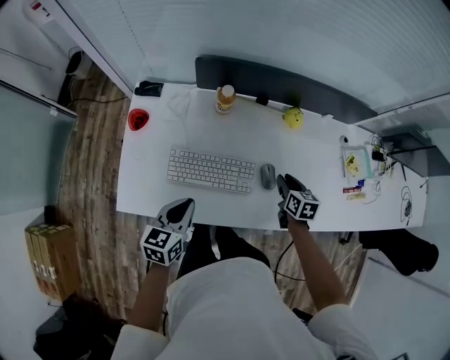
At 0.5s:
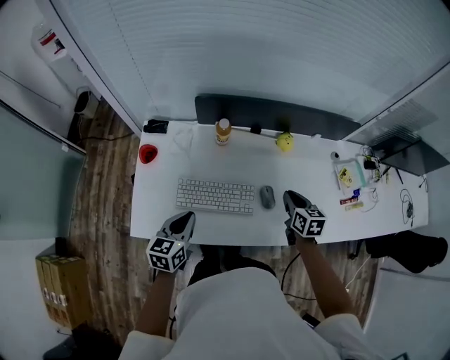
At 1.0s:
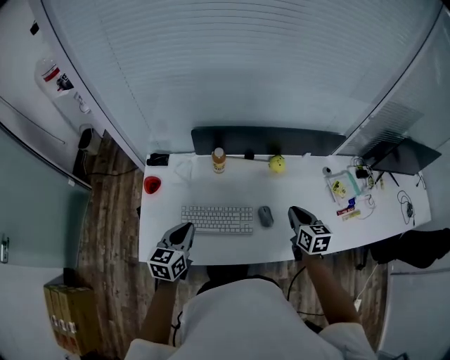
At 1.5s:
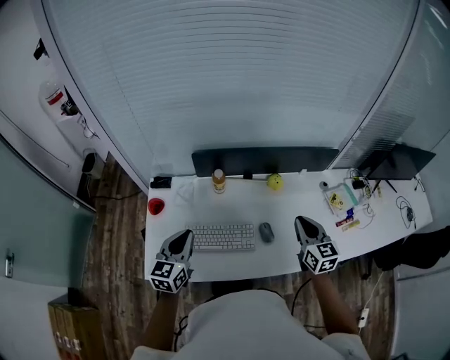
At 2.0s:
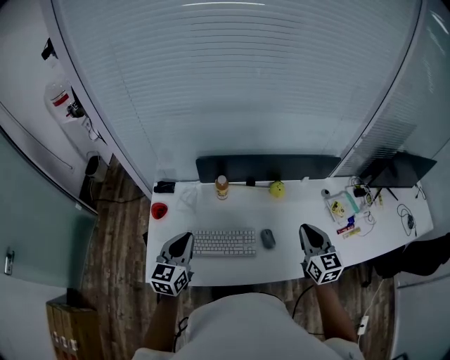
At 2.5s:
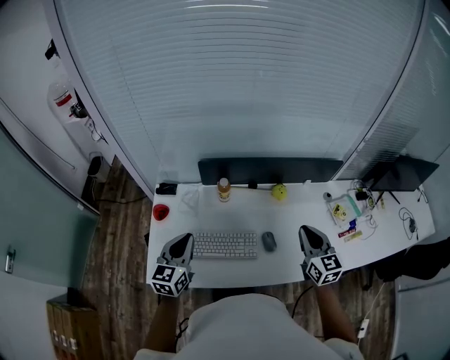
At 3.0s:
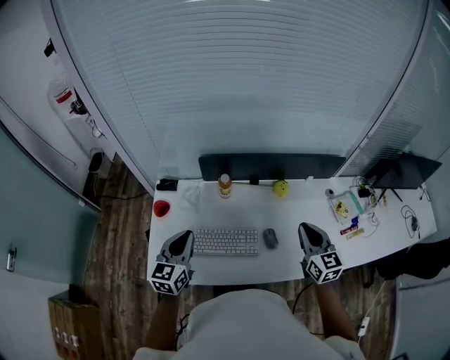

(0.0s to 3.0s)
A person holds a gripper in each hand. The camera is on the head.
0.0s - 1.5s: The left gripper heads upward, covering some 15 cm, and rotates roughly 20 degrees. The right gripper is displaced upward by some 25 cm, swivels about 30 degrees, and closes.
1.5s - 3.0s: The grippers move only a little.

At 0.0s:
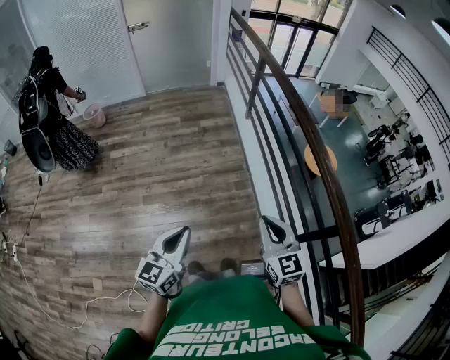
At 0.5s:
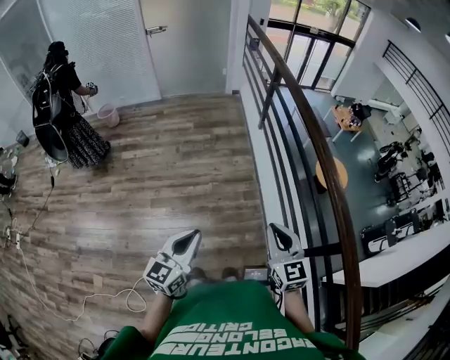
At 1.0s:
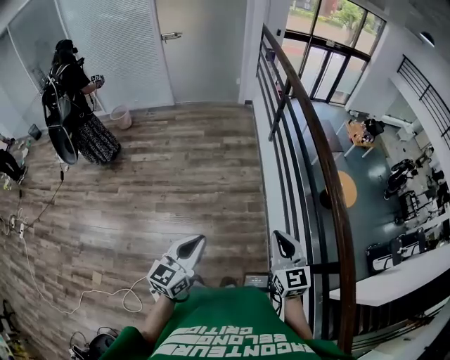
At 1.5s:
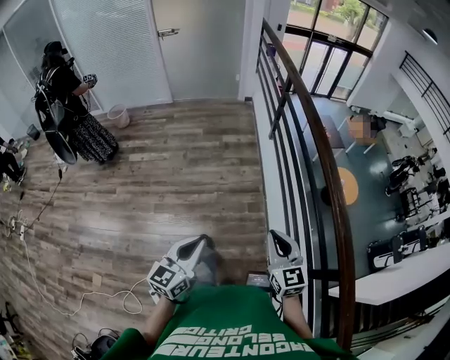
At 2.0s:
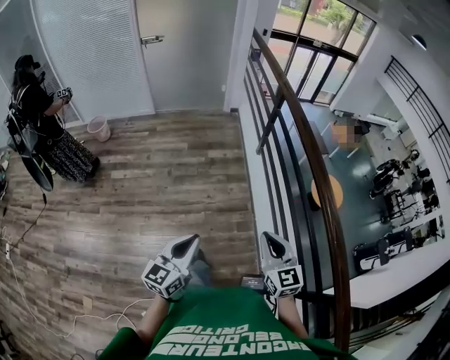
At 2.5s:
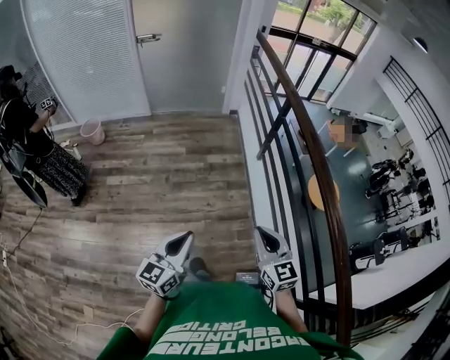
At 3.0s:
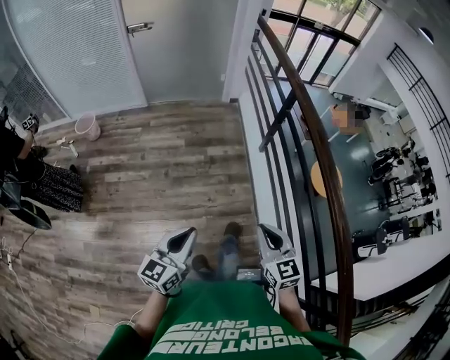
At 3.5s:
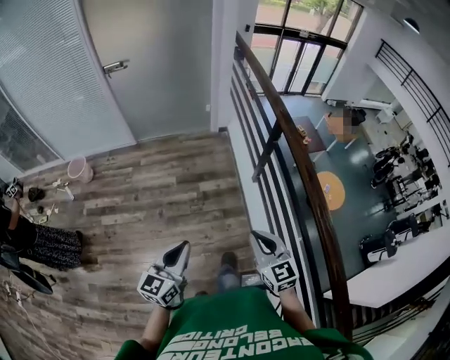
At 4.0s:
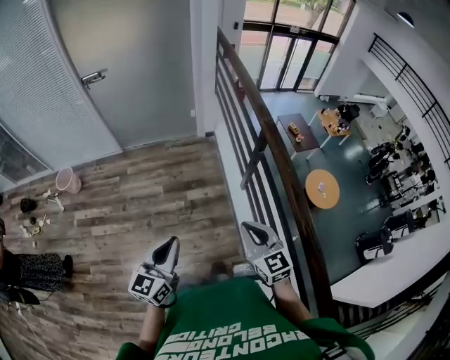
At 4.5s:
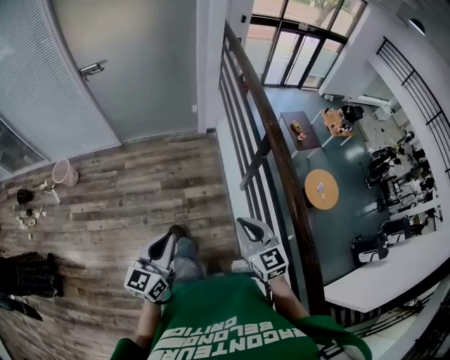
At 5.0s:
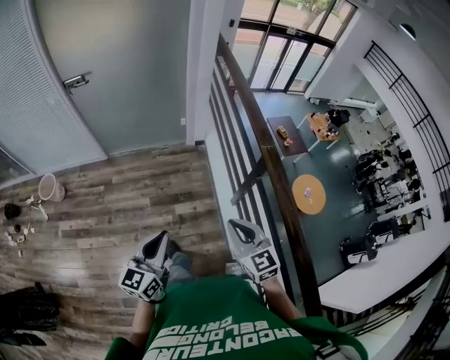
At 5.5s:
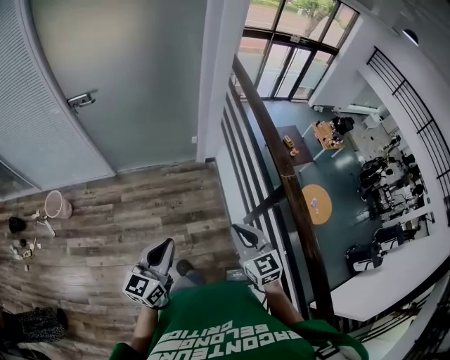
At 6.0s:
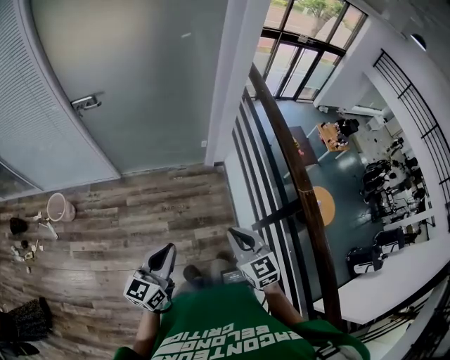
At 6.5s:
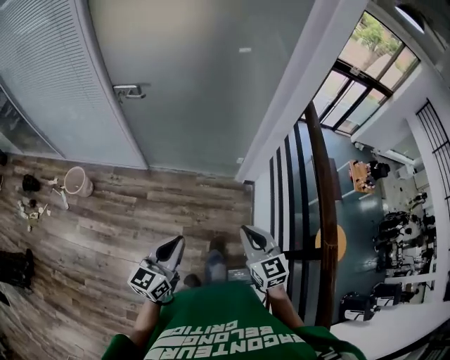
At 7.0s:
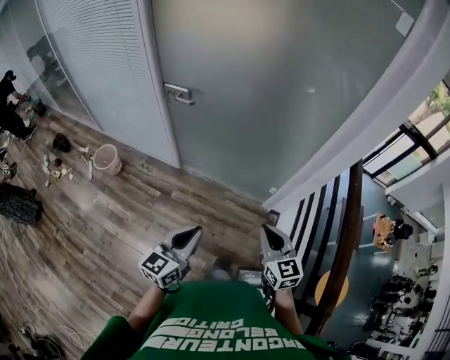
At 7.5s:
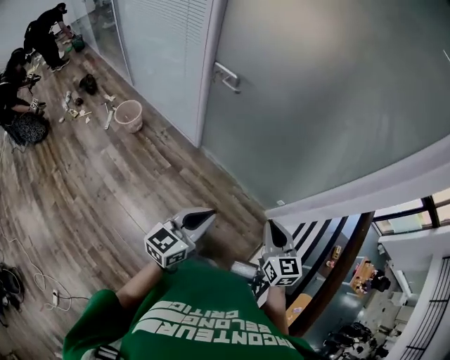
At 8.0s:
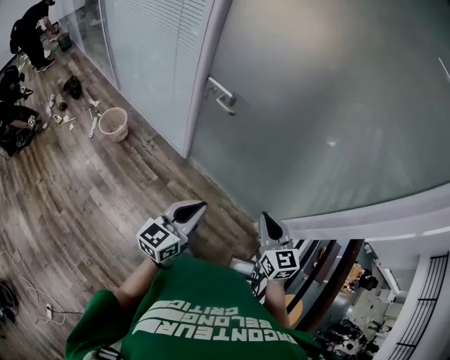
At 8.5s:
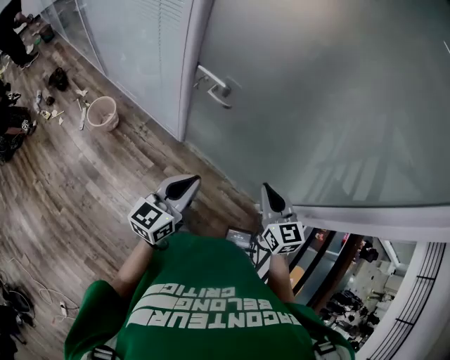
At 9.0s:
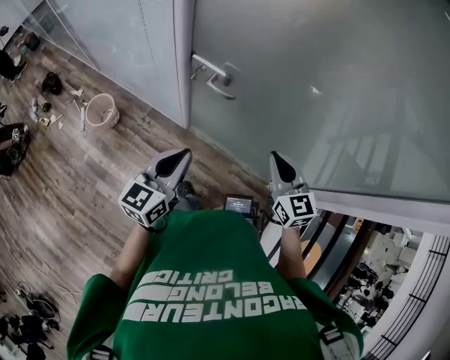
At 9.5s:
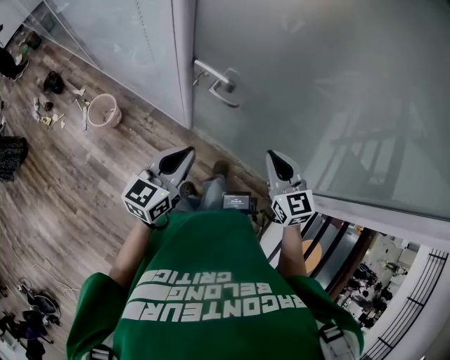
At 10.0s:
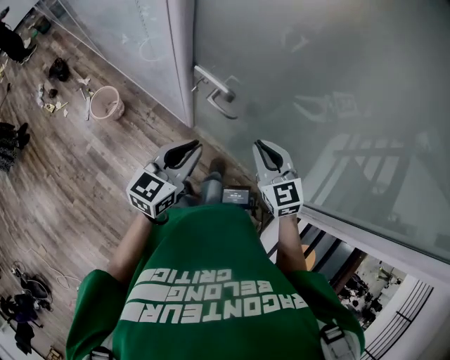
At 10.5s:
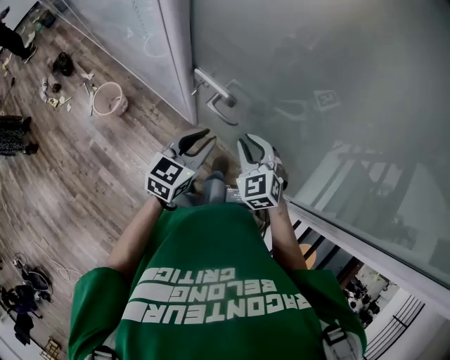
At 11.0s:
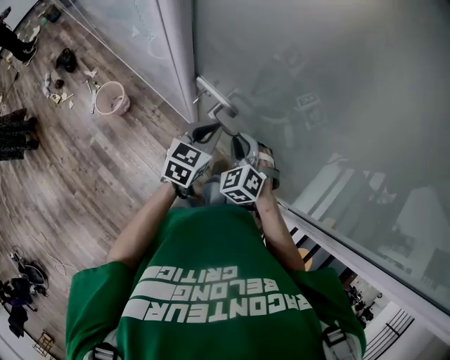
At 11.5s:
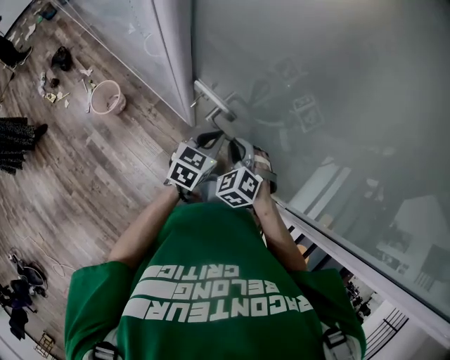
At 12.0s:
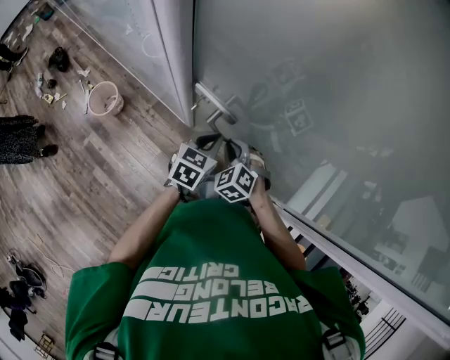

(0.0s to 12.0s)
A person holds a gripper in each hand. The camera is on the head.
0.0s - 2.0s: Both grippers travel together forward, some 25 cm.
2.0s - 4.0s: The pair of grippers is taken forward, roughly 50 cm.
4.0s - 6.0s: The right gripper is displaced forward and to the left by approximately 35 cm; the left gripper heads forward, covering roughly 35 cm.
6.0s - 8.0s: The left gripper ends up some 40 cm from where it was, and rotates roughly 30 degrees; the right gripper moves roughly 50 cm, and changes its angle by approximately 30 degrees.
8.0s - 10.0s: The two grippers go some 25 cm forward.
10.0s - 12.0s: The left gripper moves forward and downward, about 15 cm, and changes its angle by approximately 20 degrees. Meanwhile the right gripper travels downward, to the left and forward by roughly 15 cm, and changes its angle by approximately 40 degrees.

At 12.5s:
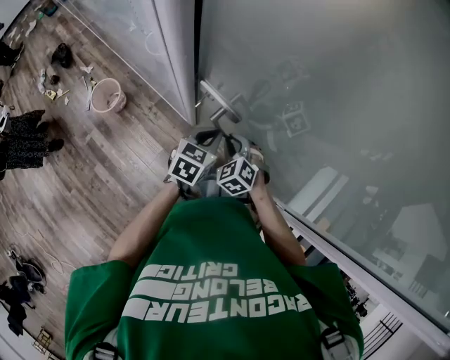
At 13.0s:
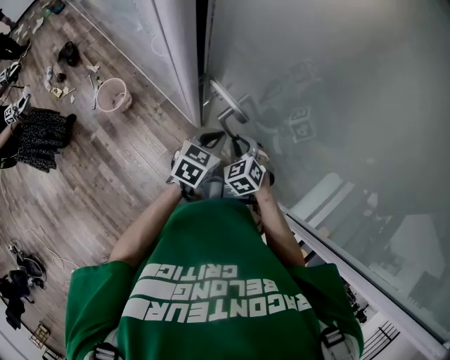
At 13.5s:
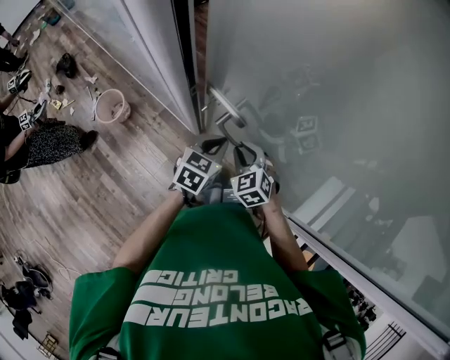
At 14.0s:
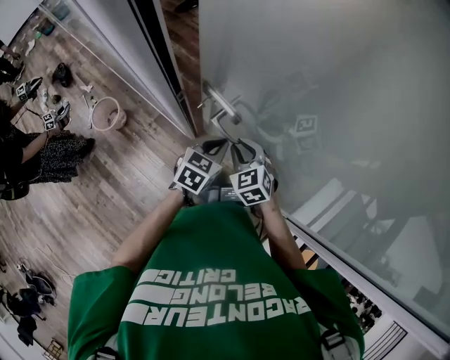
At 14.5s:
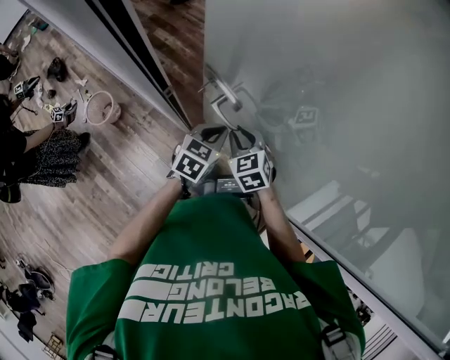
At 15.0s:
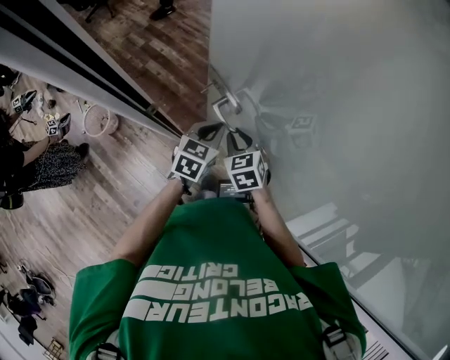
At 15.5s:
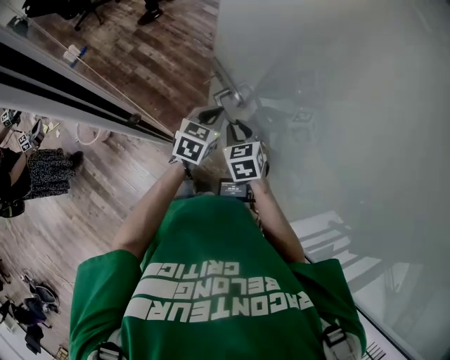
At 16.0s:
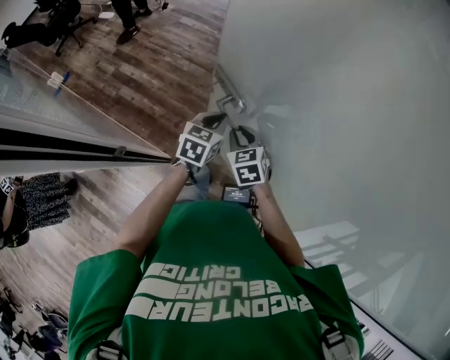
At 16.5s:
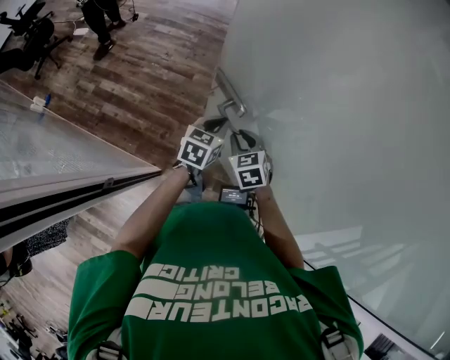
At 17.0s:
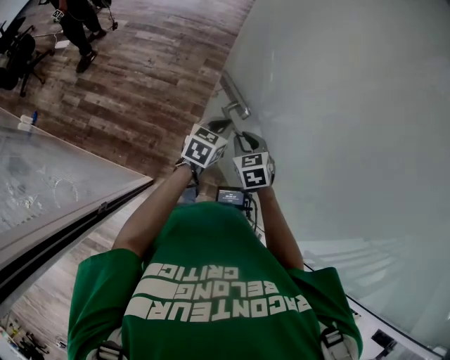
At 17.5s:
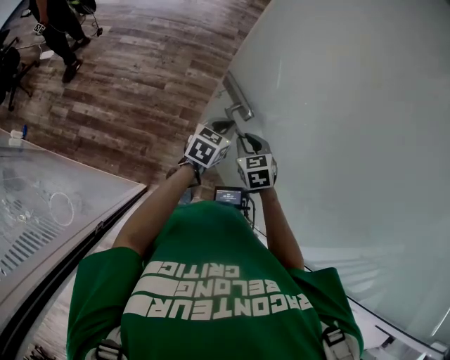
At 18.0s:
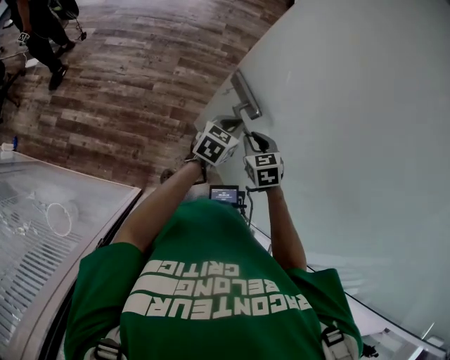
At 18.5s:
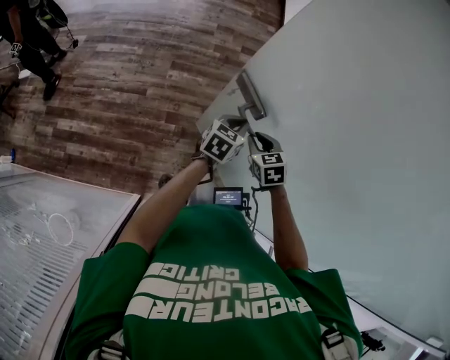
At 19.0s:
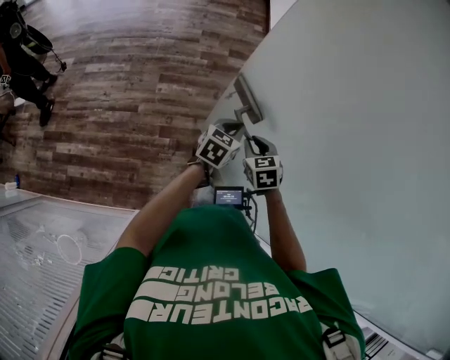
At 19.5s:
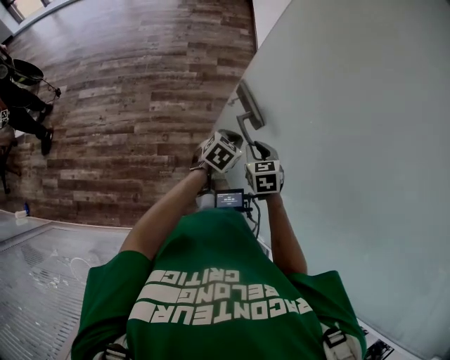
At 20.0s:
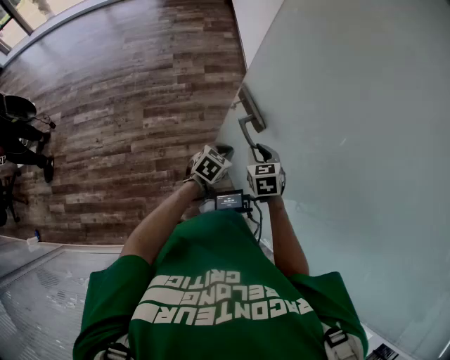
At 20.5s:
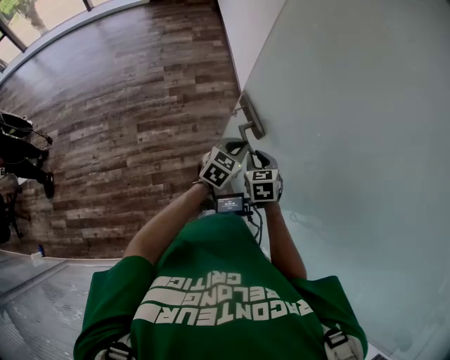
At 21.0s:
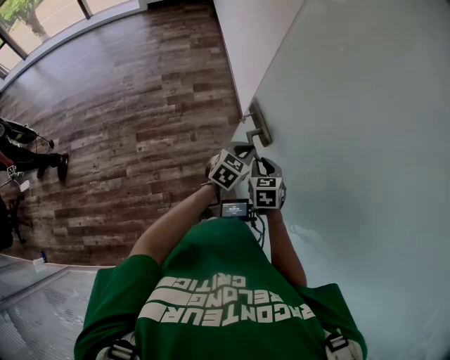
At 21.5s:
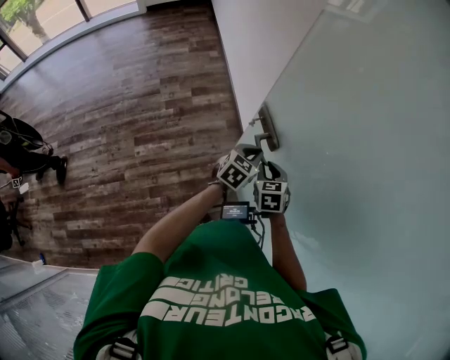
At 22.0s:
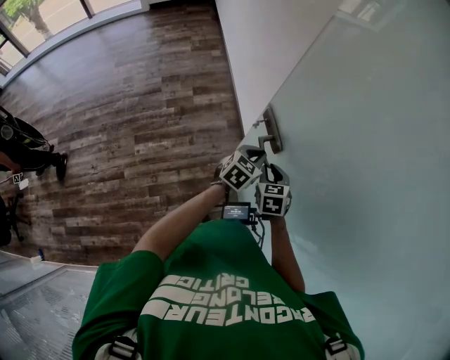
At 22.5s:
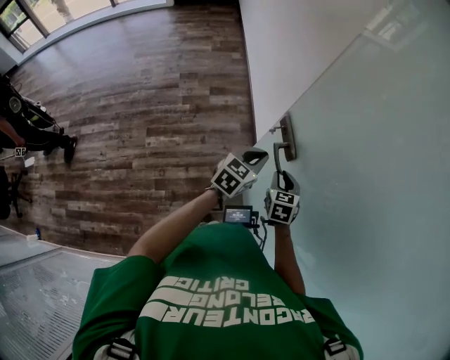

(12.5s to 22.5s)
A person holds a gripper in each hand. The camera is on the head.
12.5s - 14.5s: The left gripper is displaced forward and to the right by about 10 cm, while the right gripper is displaced forward, to the right and upward by some 10 cm, and changes its angle by roughly 20 degrees.
14.5s - 16.5s: The grippers both shift forward and to the right by approximately 25 cm. The right gripper turns by approximately 20 degrees.
16.5s - 18.5s: The grippers both shift forward and to the right by approximately 25 cm. The right gripper turns by some 20 degrees, while the left gripper changes its angle by some 20 degrees.
18.5s - 20.5s: The two grippers go some 25 cm forward and to the right. The left gripper rotates some 20 degrees; the right gripper rotates roughly 20 degrees.
20.5s - 22.5s: The left gripper heads forward, covering approximately 5 cm. The right gripper heads to the right and forward, covering roughly 10 cm.

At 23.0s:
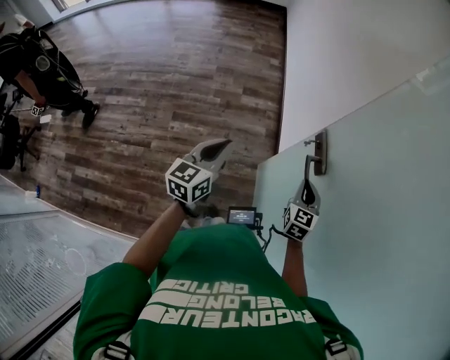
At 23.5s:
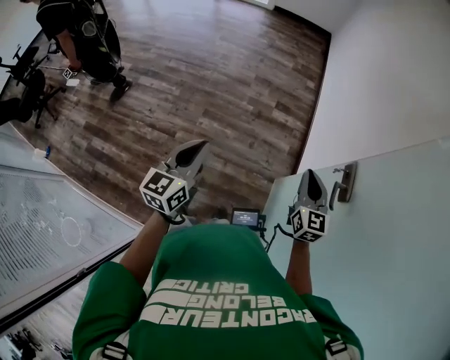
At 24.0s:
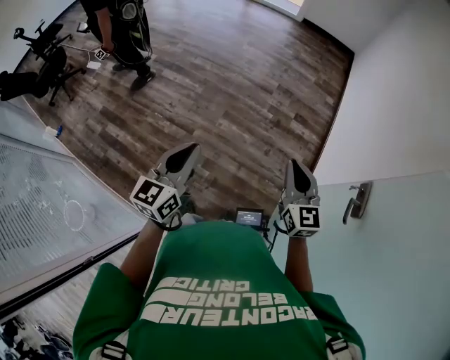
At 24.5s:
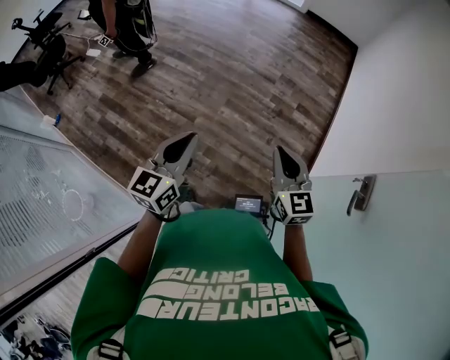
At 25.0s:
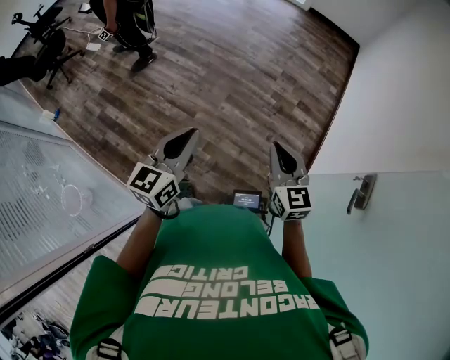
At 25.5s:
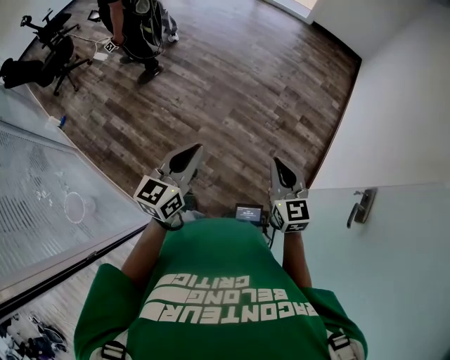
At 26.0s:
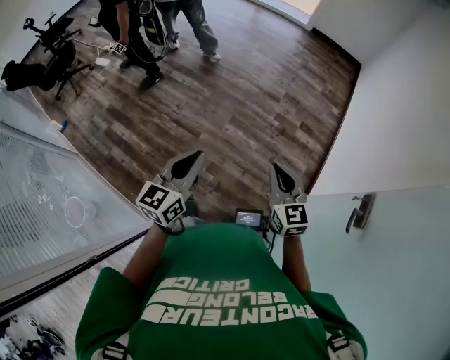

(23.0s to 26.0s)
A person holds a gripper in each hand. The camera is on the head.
23.0s - 24.5s: The right gripper moves about 40 cm, and turns by some 50 degrees, while the left gripper shifts by about 35 cm, and rotates roughly 30 degrees.
24.5s - 26.0s: The grippers stay close to where they were, moving slightly.
